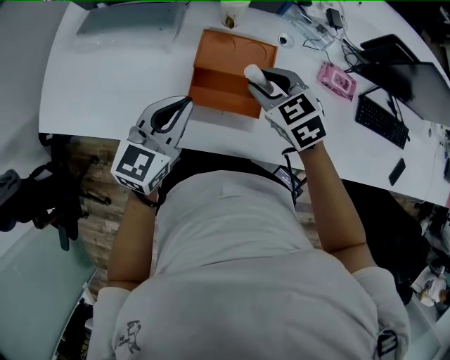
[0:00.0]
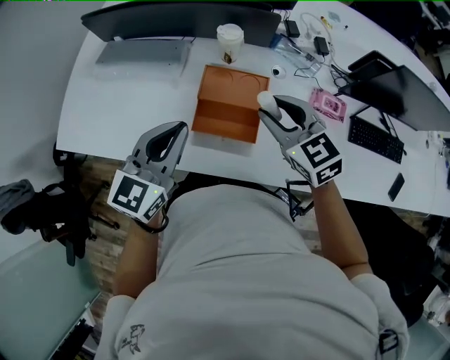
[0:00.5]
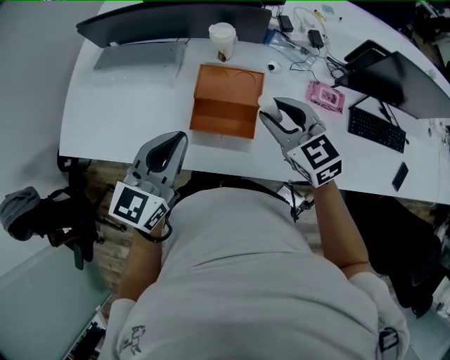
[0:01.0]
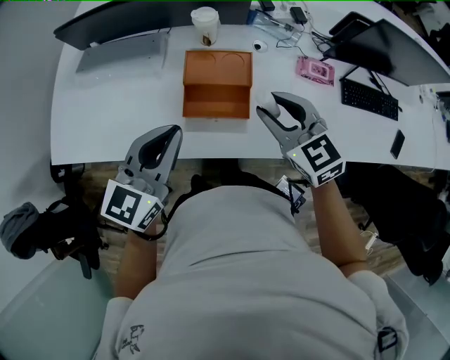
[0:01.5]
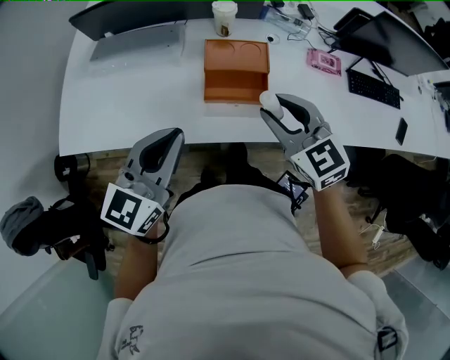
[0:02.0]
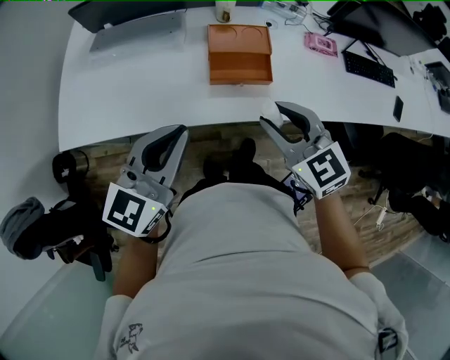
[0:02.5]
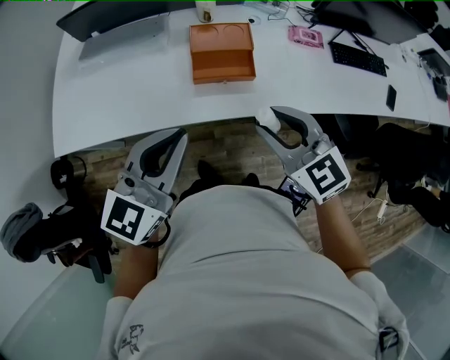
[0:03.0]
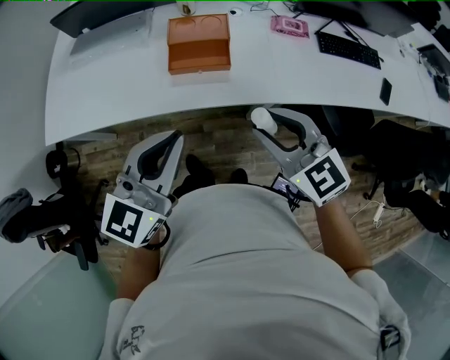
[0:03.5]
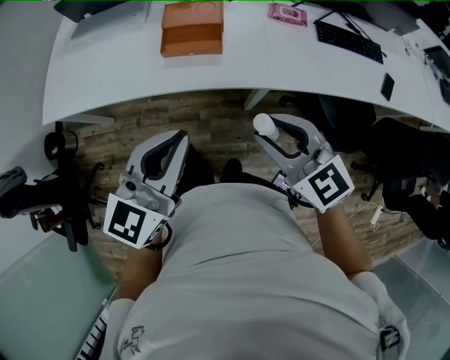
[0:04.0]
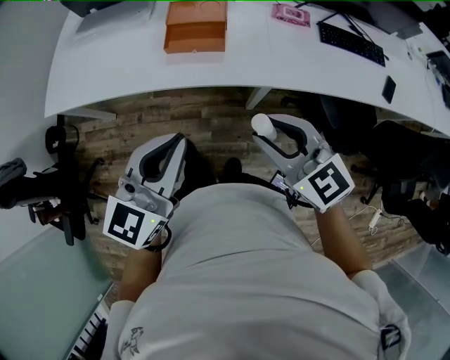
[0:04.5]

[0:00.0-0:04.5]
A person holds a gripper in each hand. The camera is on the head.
0:00.0 to 0:02.0: The left gripper heads backward, upward and to the left, covering roughly 20 cm. Meanwhile the right gripper goes approximately 20 cm backward and upward, and changes its angle by some 20 degrees.
0:02.0 to 0:04.5: Both grippers move backward and to the right, about 30 cm.

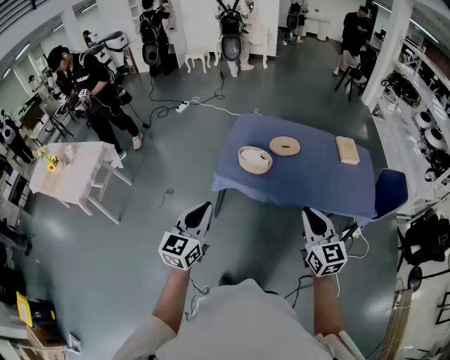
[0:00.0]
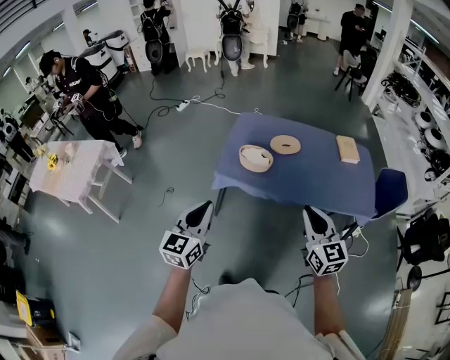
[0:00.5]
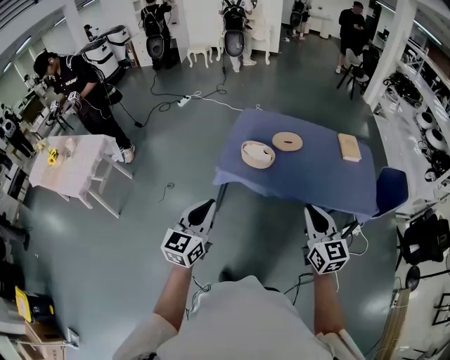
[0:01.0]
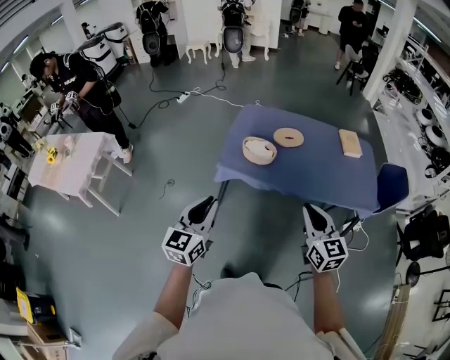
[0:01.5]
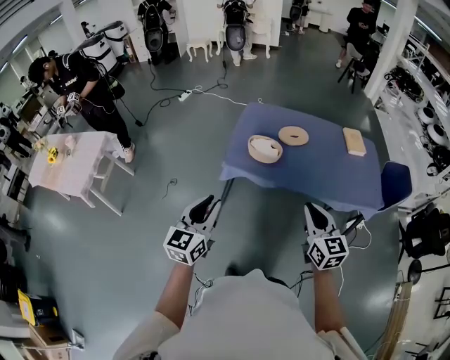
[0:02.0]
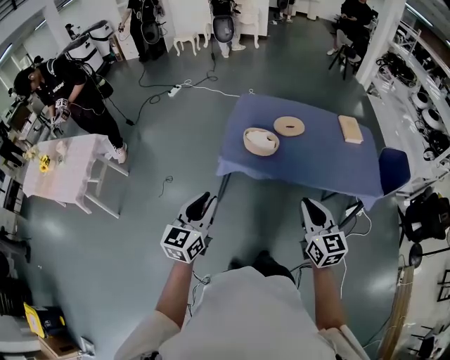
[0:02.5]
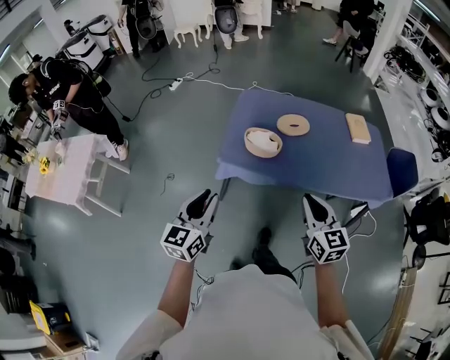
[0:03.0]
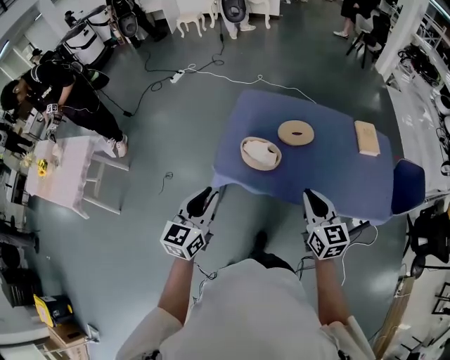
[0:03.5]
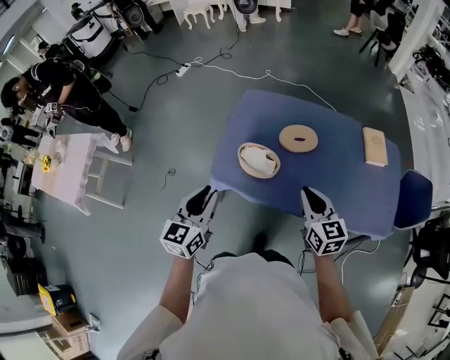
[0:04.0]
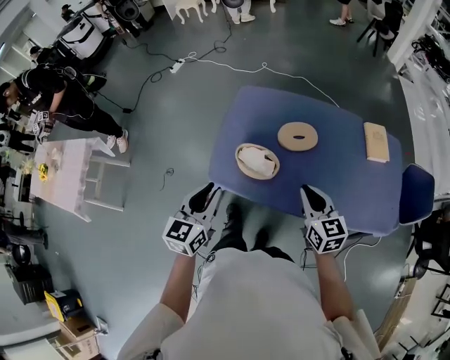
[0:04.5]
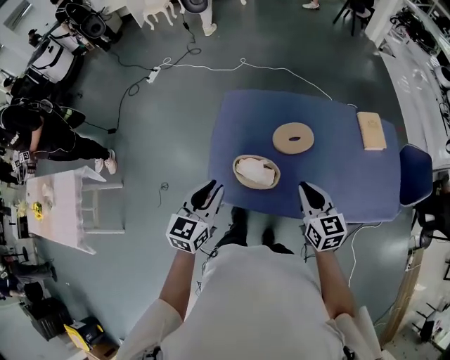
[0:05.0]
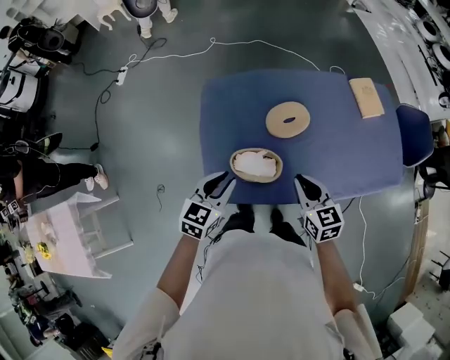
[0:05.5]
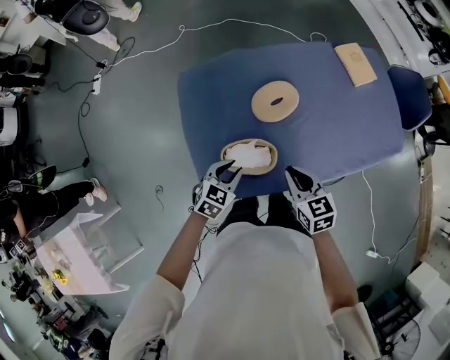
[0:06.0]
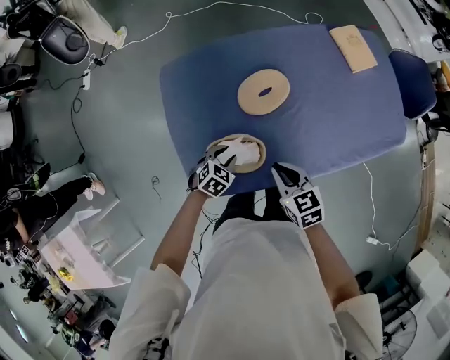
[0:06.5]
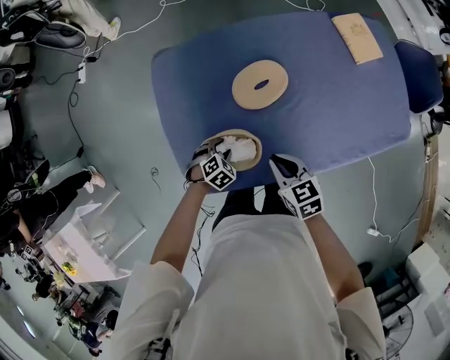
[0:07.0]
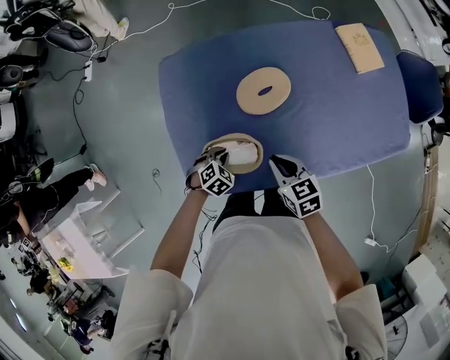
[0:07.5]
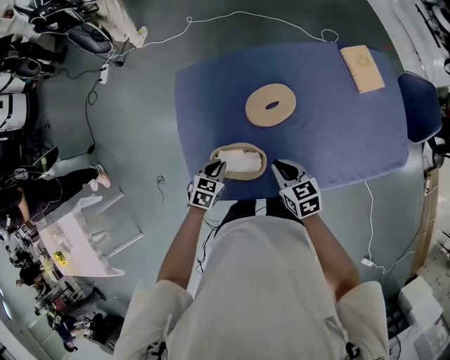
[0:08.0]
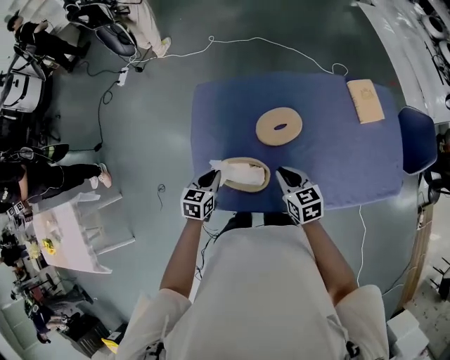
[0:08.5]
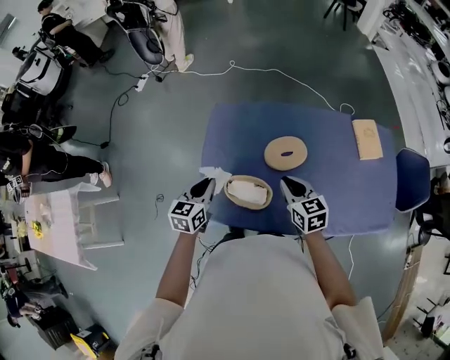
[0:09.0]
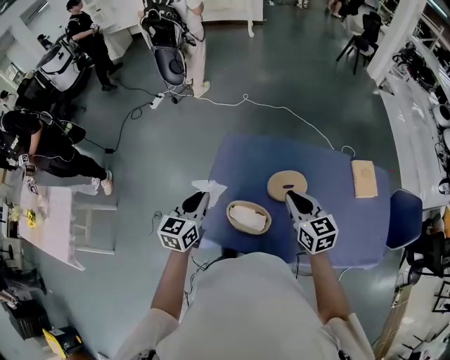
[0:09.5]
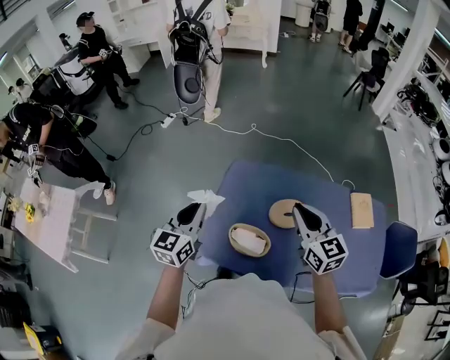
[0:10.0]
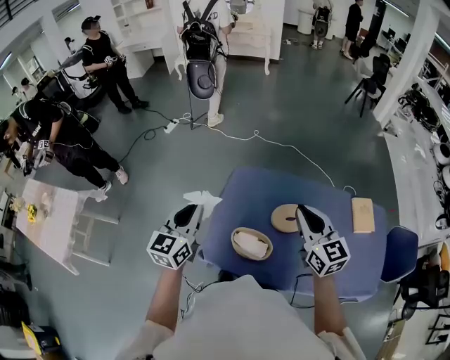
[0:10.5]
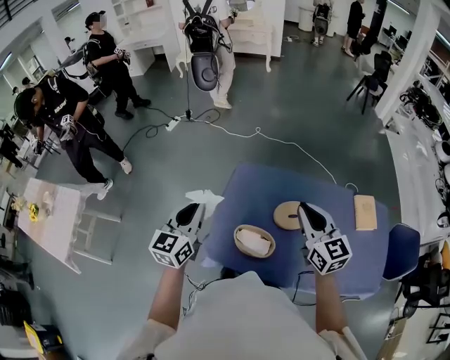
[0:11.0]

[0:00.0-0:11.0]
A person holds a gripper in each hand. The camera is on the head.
0:00.0 to 0:02.0: The right gripper moves to the left, approximately 5 cm, while the left gripper shifts by some 5 cm, and opens.
0:02.0 to 0:03.5: The two grippers go approximately 25 cm forward.
0:03.5 to 0:05.5: The left gripper moves approximately 35 cm, and changes its angle by about 40 degrees, while the right gripper ends up about 25 cm from where it was, and swivels some 20 degrees.
0:05.5 to 0:07.5: The right gripper heads downward, covering roughly 15 cm, while the left gripper shifts about 30 cm downward, tips its fingers downward by approximately 40 degrees, and opens and closes again.
0:07.5 to 0:09.0: The right gripper moves upward, approximately 15 cm. Meanwhile the left gripper is displaced upward by roughly 25 cm, and angles its fingers upward, by roughly 40 degrees.
0:09.0 to 0:11.0: The right gripper travels upward by some 25 cm, and rotates about 30 degrees. The left gripper goes about 25 cm upward and to the left, and rotates about 30 degrees.

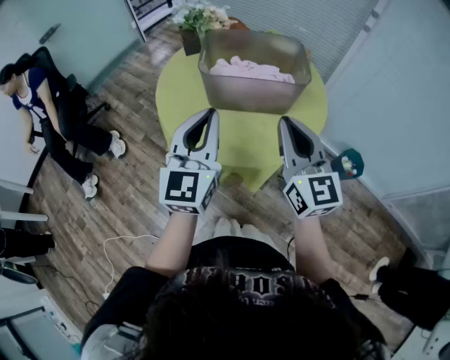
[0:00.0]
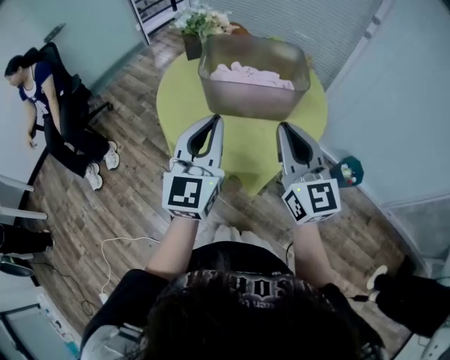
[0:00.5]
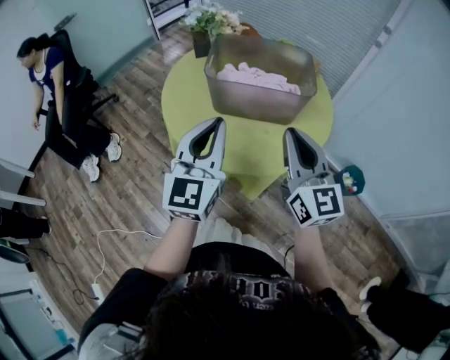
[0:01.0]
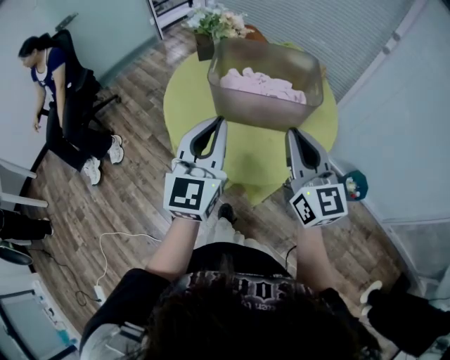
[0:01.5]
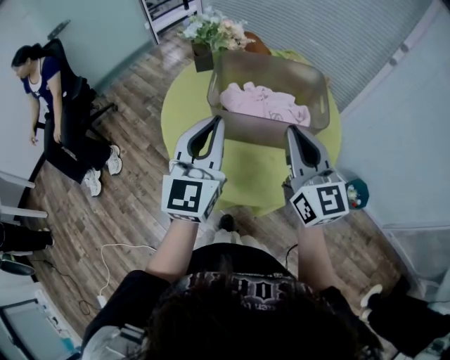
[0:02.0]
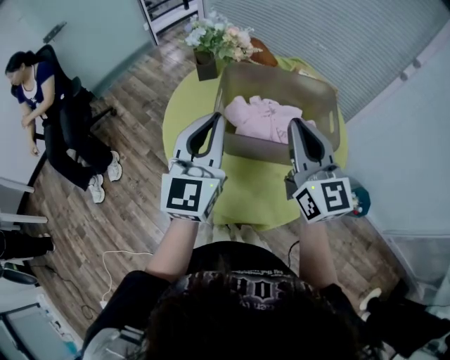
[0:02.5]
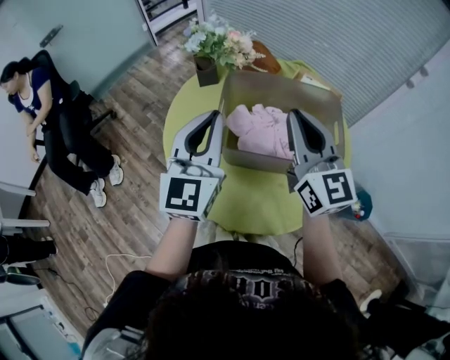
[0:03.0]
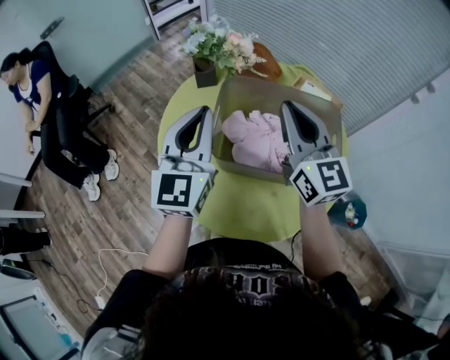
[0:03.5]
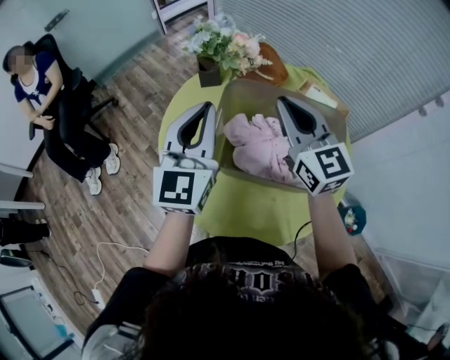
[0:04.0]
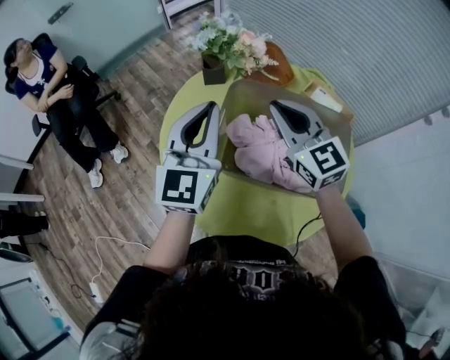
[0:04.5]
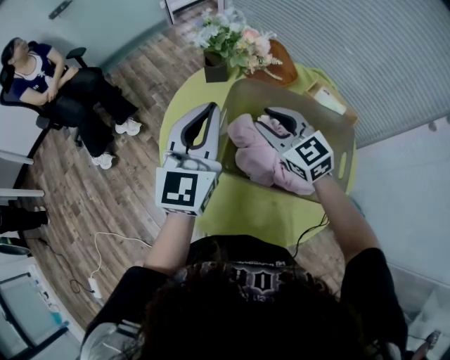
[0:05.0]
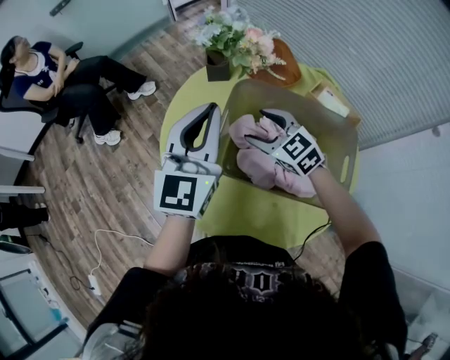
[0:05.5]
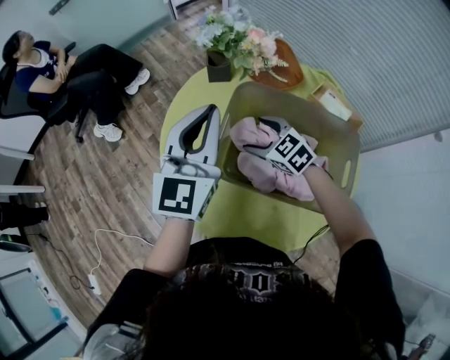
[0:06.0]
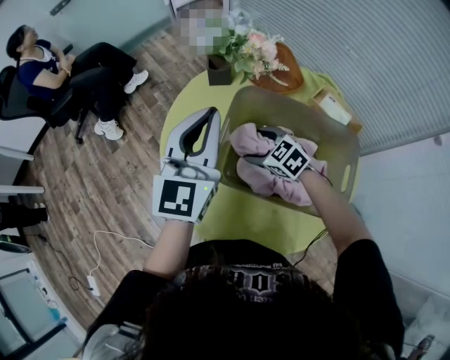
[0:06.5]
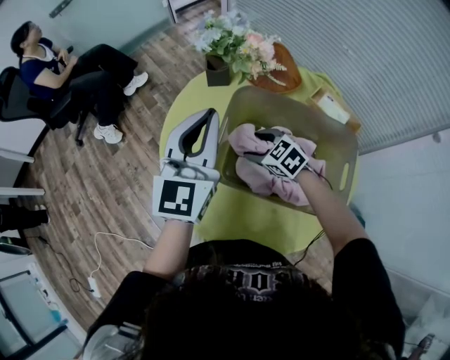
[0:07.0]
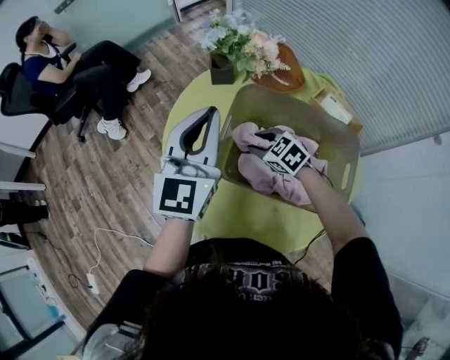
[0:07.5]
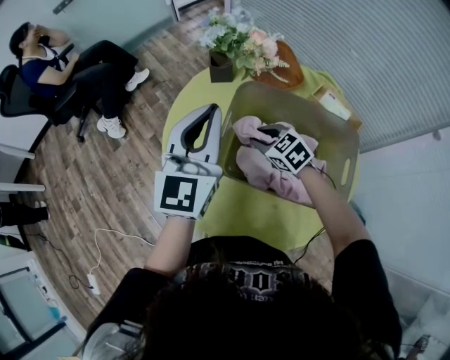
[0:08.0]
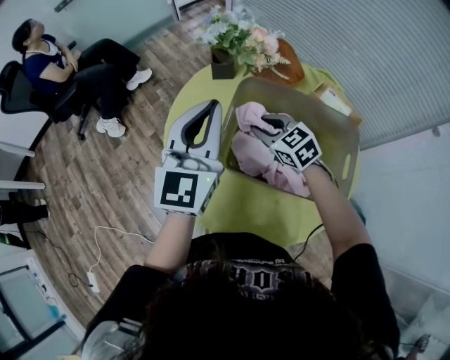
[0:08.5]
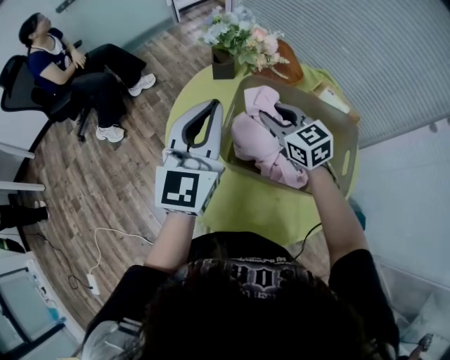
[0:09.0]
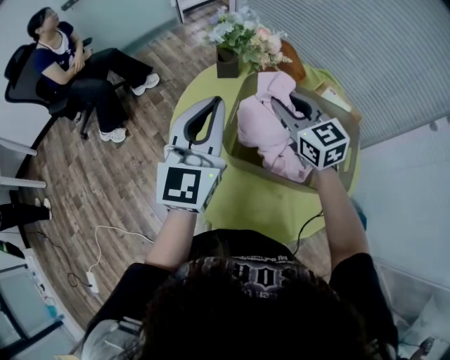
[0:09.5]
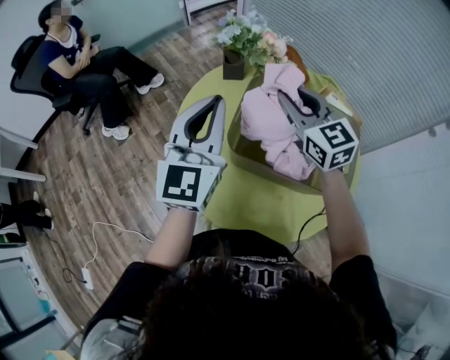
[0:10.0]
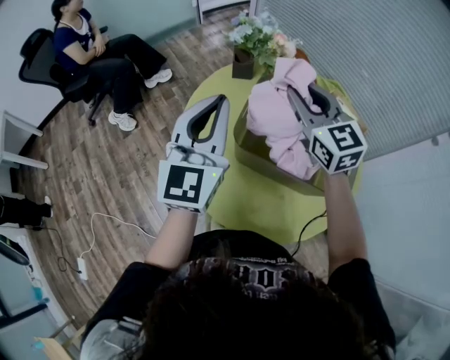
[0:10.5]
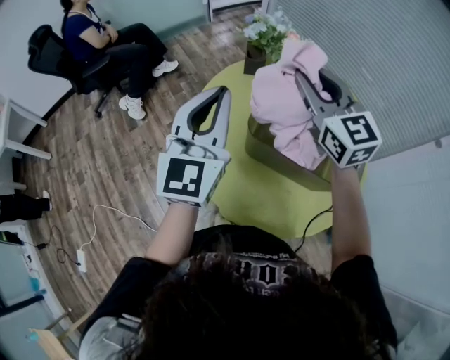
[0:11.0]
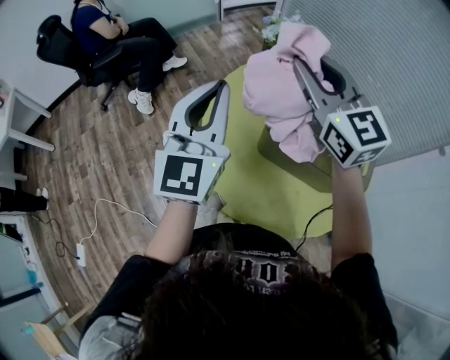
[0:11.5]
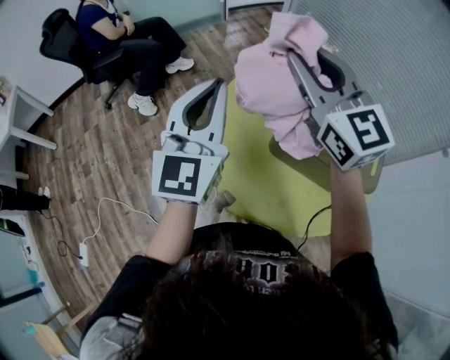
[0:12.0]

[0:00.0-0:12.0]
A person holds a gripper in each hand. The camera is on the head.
0:00.0 to 0:02.0: The grippers both shift forward by approximately 10 cm.
0:02.0 to 0:04.0: The two grippers go about 20 cm forward.
0:04.0 to 0:06.0: The right gripper heads downward, covering roughly 25 cm, tips its fingers downward by some 40 degrees, and opens its fingers.
0:06.0 to 0:08.0: The right gripper closes.
0:08.0 to 0:10.0: The left gripper ends up approximately 5 cm from where it was. Meanwhile the right gripper heads upward, covering some 25 cm, and tilts its fingers some 30 degrees upward.
0:10.0 to 0:12.0: The right gripper is displaced to the left and upward by some 25 cm, while the left gripper is displaced to the left by some 15 cm.
